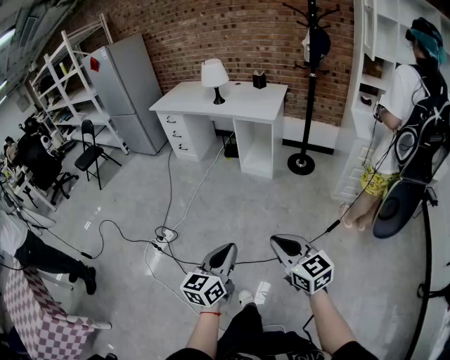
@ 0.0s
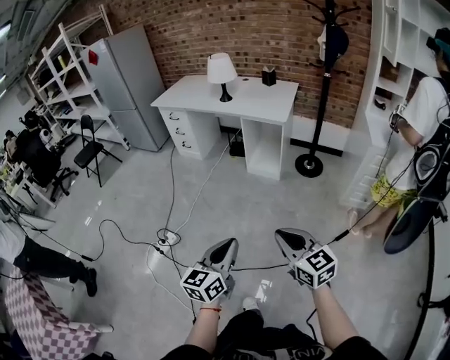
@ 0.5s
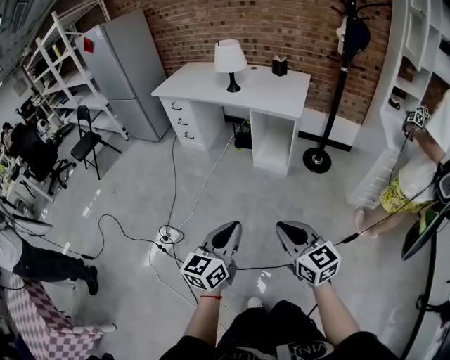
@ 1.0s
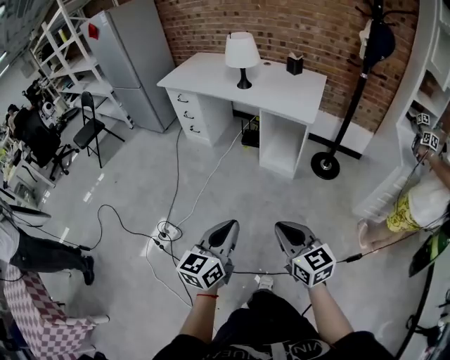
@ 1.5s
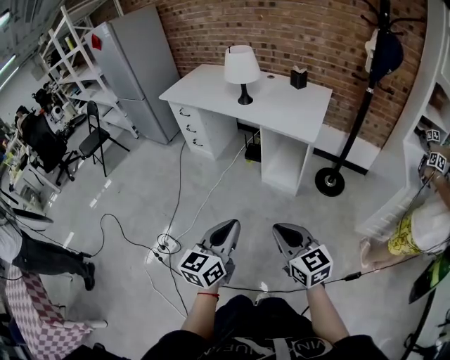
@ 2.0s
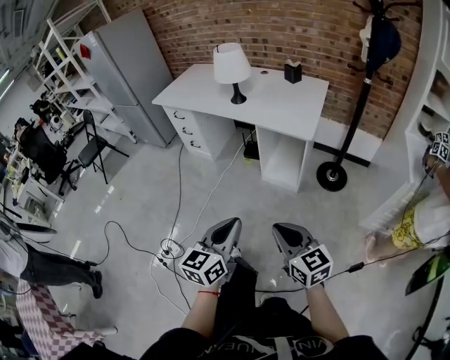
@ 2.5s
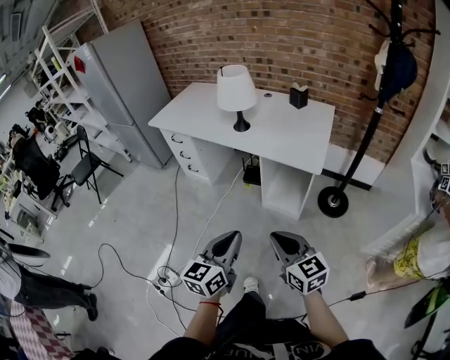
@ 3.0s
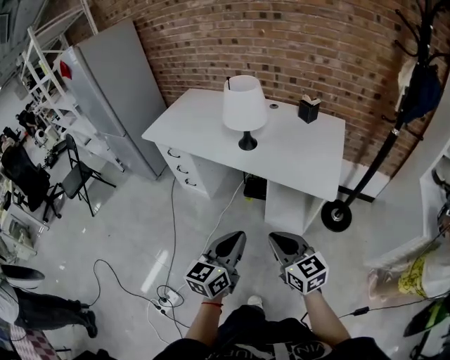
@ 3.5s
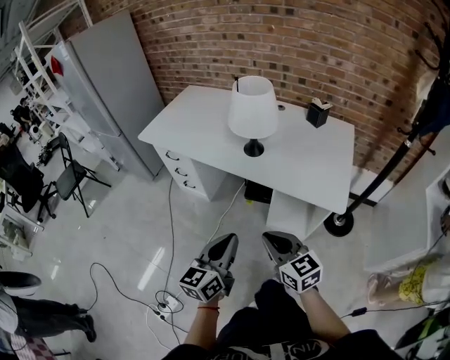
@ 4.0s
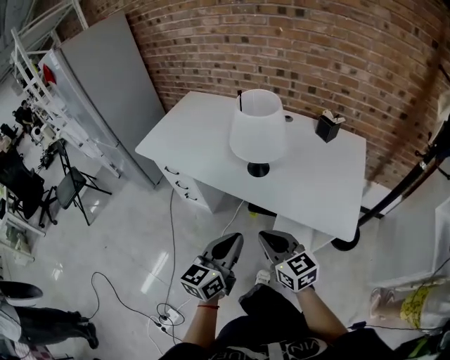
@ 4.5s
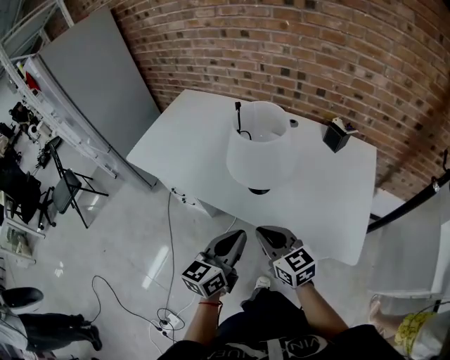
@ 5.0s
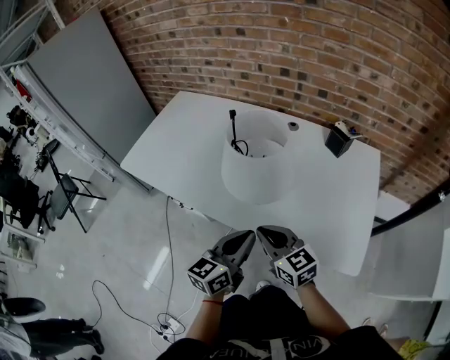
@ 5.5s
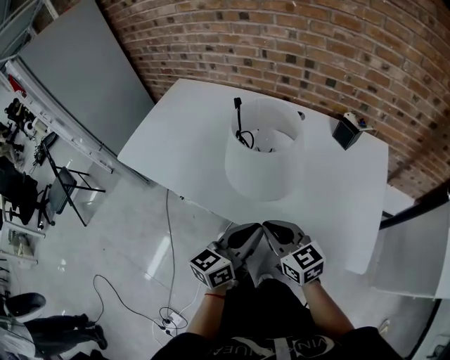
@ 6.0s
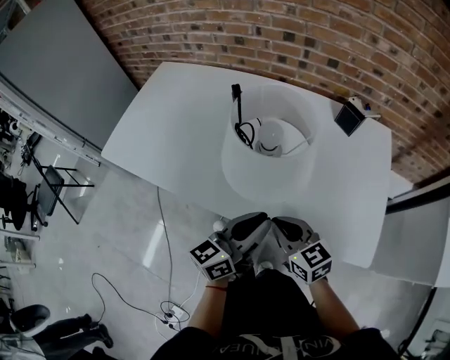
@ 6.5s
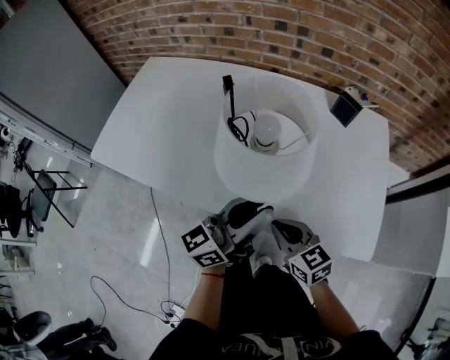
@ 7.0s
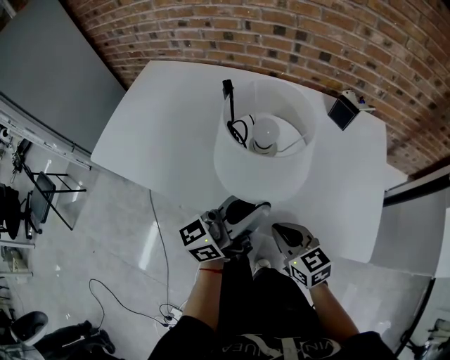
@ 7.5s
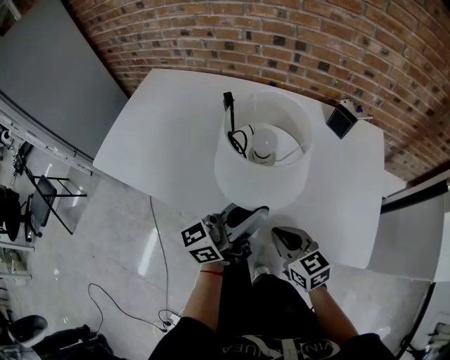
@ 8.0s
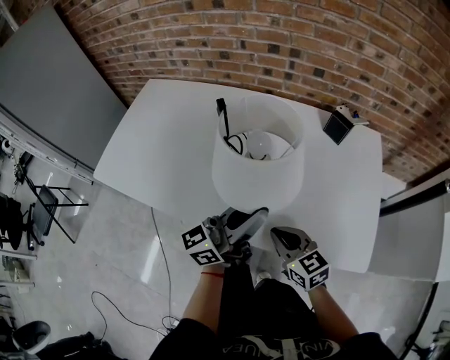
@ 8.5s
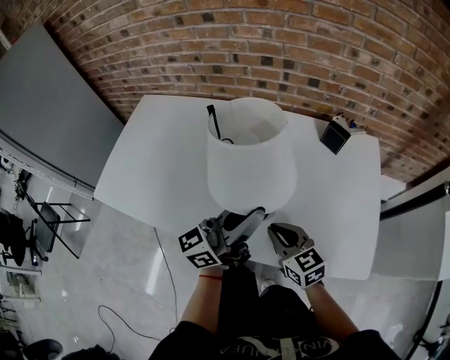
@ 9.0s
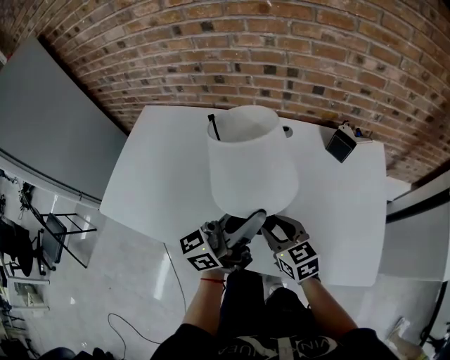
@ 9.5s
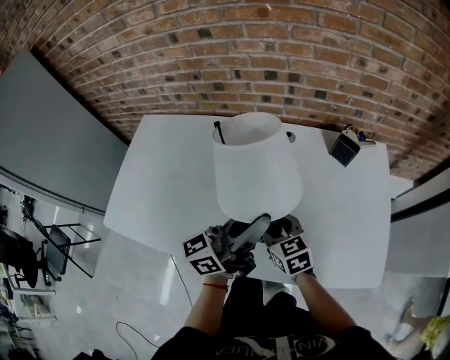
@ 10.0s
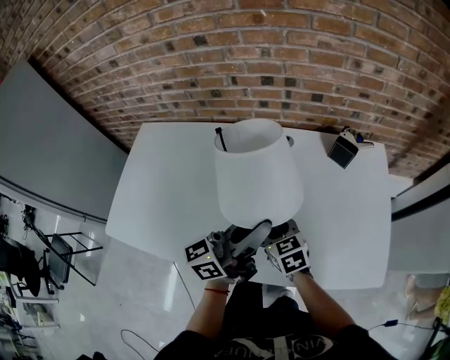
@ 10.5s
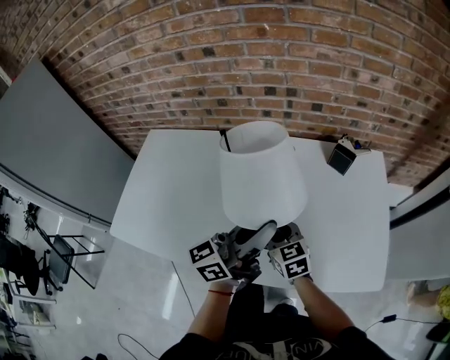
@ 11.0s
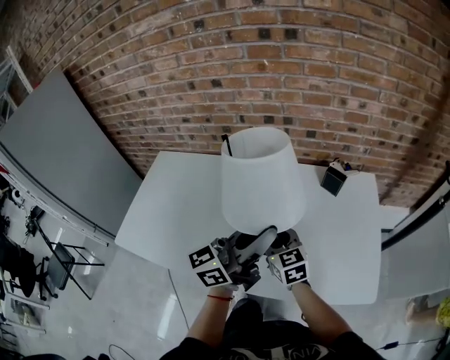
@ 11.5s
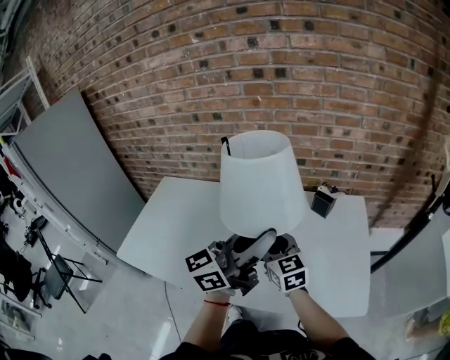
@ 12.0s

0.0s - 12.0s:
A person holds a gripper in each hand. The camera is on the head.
0.0s - 2.0s: Both grippers travel together forward, approximately 40 cm.
2.0s - 4.0s: Both grippers are carried forward, approximately 40 cm.
4.0s - 6.0s: The grippers both shift forward by roughly 30 cm.
6.0s - 8.0s: The right gripper heads downward, covering roughly 5 cm. The left gripper travels forward by approximately 5 cm, and changes its angle by roughly 30 degrees.
8.0s - 10.0s: The left gripper heads forward and upward, covering some 15 cm, while the right gripper moves forward and to the left, approximately 20 cm, and opens its fingers.
10.0s - 12.0s: The right gripper travels upward by some 15 cm, and swivels approximately 20 degrees. Meanwhile the left gripper goes roughly 15 cm upward and to the right.

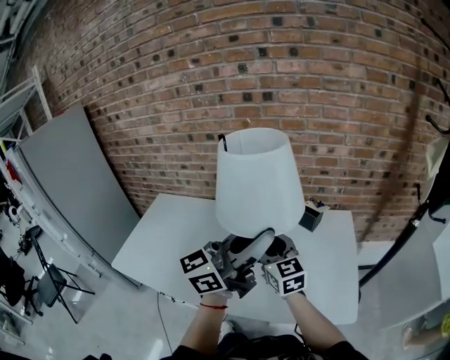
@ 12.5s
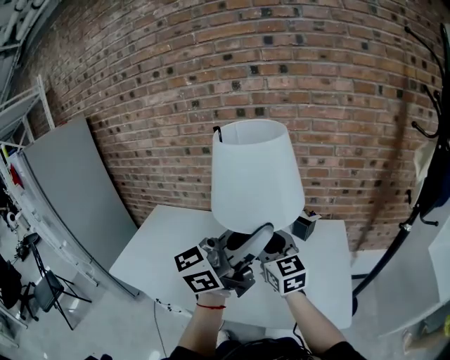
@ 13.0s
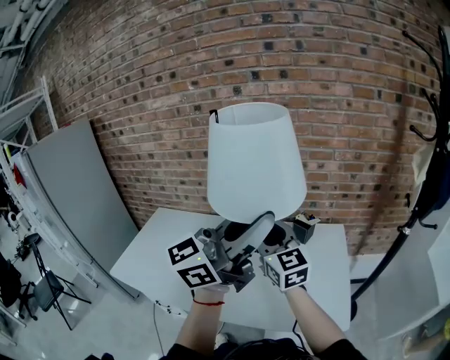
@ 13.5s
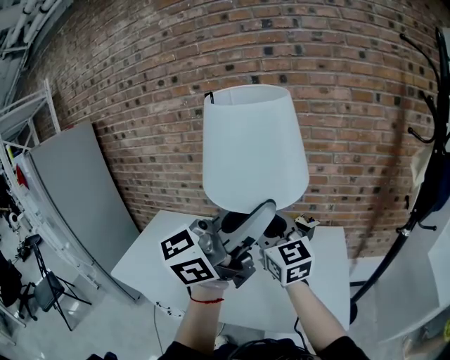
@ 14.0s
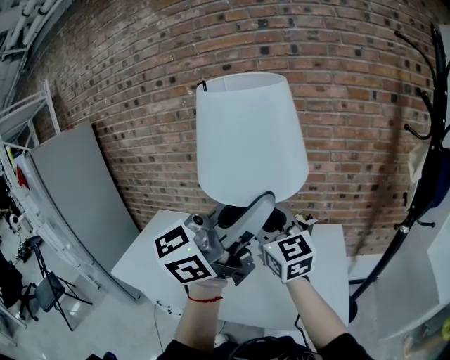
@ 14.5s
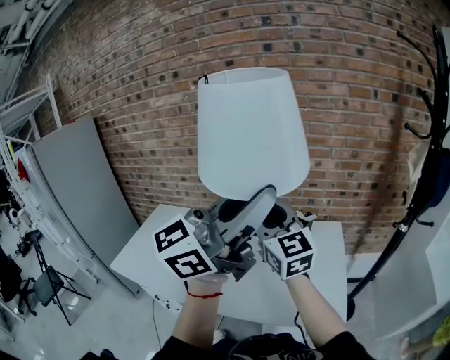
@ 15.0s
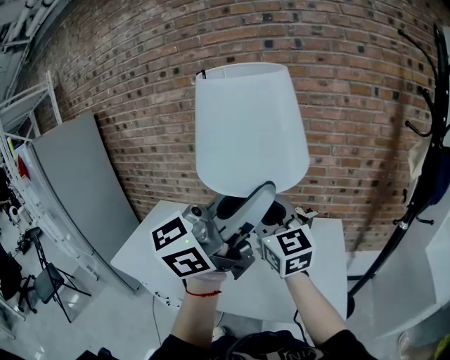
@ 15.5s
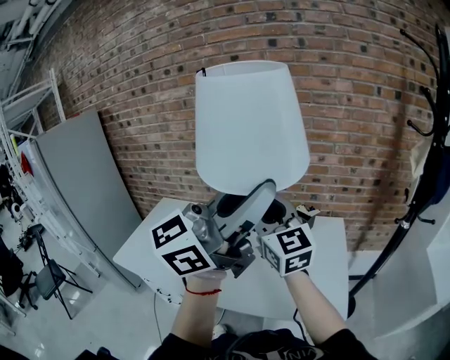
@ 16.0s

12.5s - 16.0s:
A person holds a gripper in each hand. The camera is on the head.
12.5s - 14.5s: The left gripper moves upward and to the right, some 15 cm, while the right gripper heads upward, covering roughly 20 cm.
14.5s - 16.0s: The grippers make only small movements.

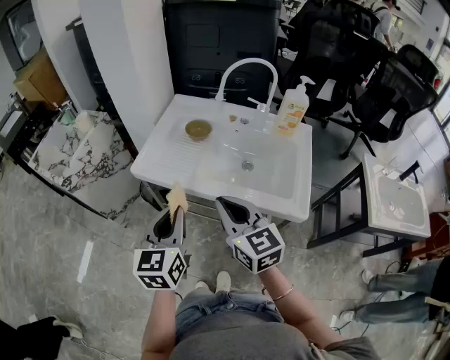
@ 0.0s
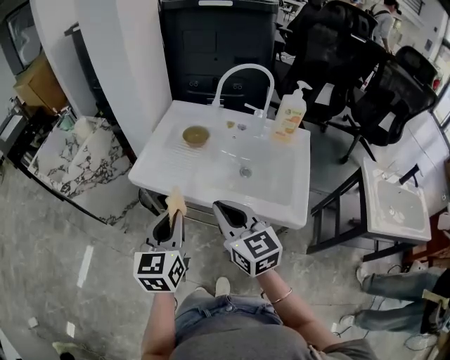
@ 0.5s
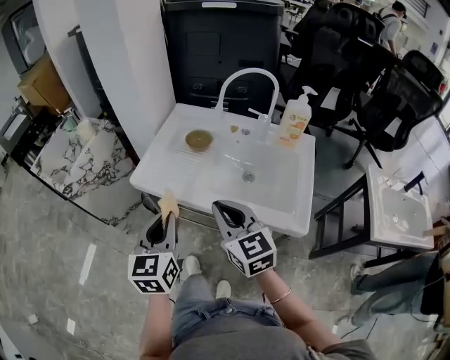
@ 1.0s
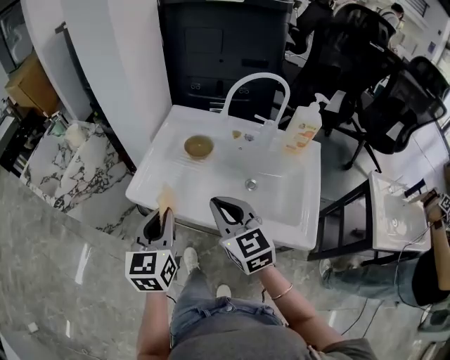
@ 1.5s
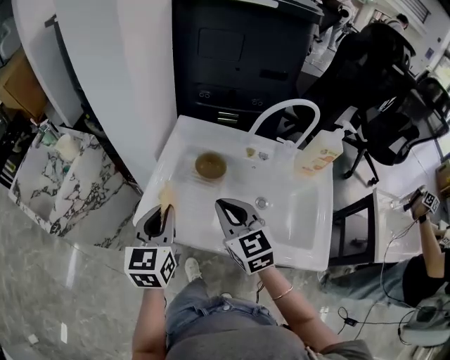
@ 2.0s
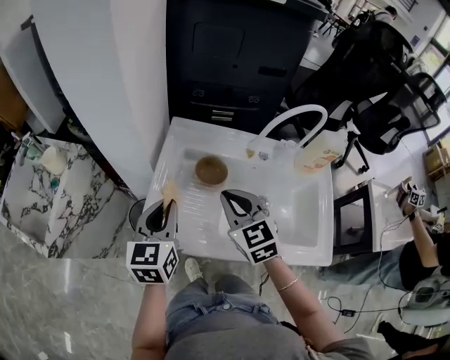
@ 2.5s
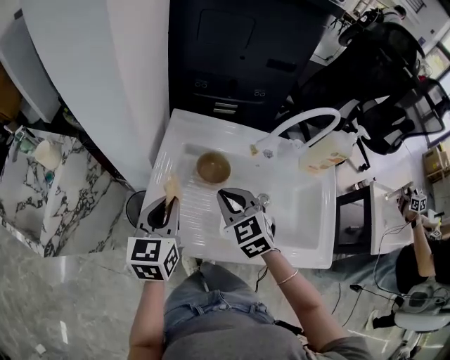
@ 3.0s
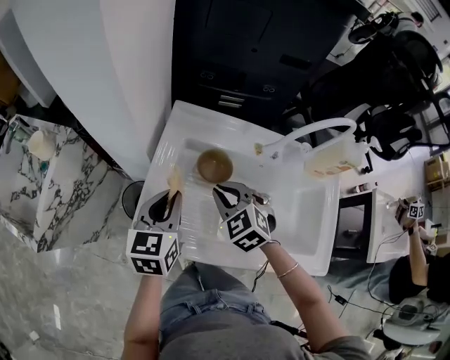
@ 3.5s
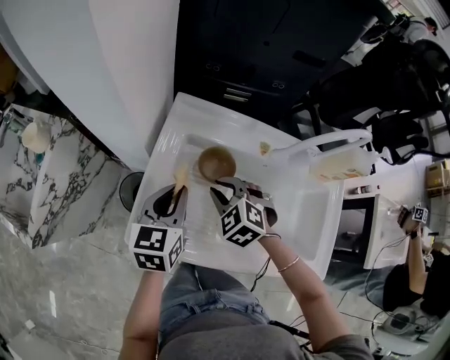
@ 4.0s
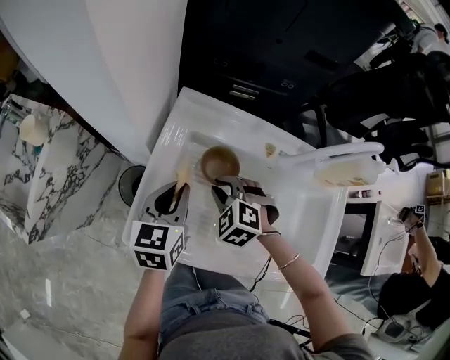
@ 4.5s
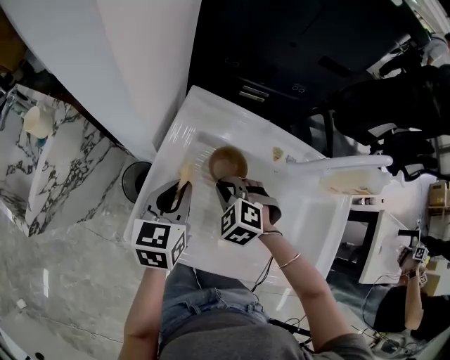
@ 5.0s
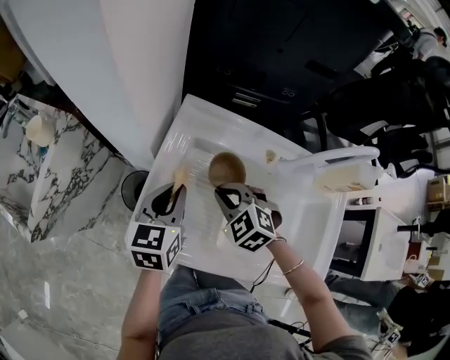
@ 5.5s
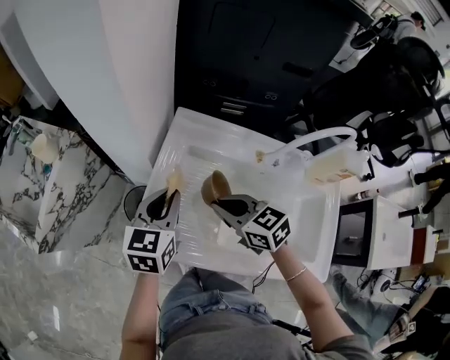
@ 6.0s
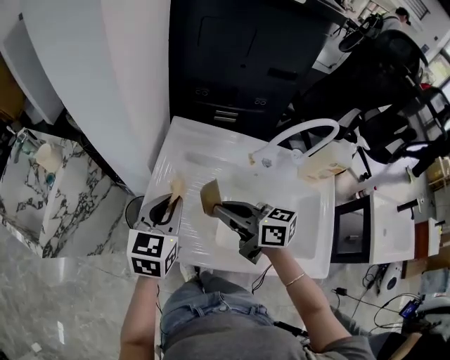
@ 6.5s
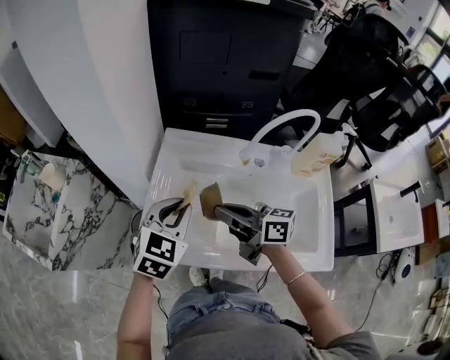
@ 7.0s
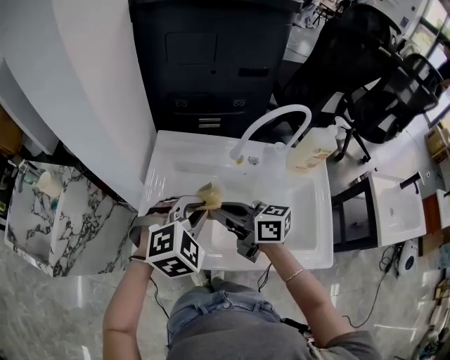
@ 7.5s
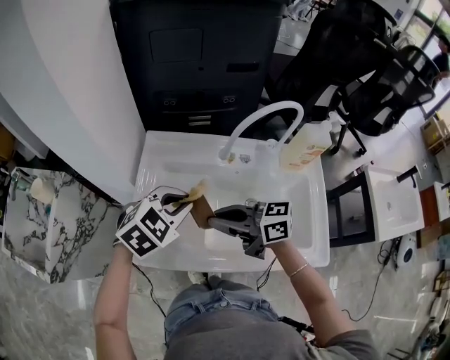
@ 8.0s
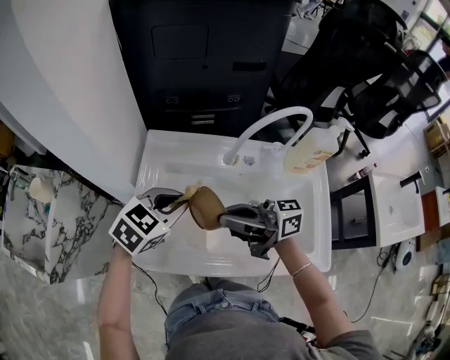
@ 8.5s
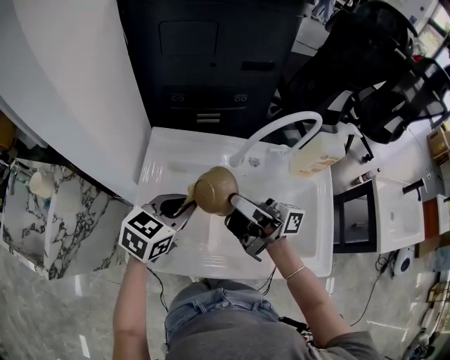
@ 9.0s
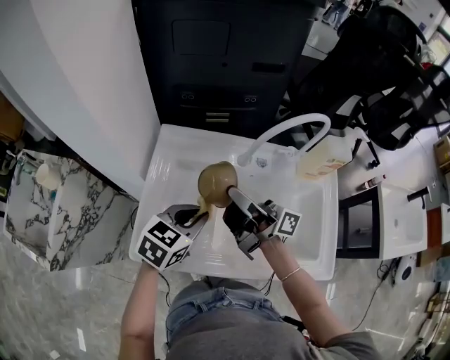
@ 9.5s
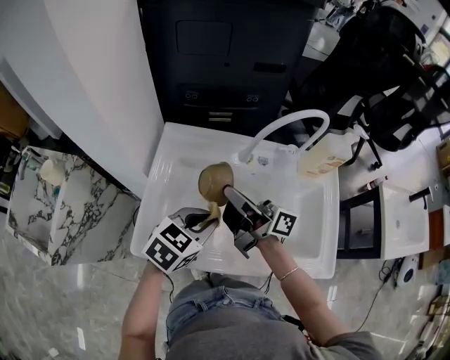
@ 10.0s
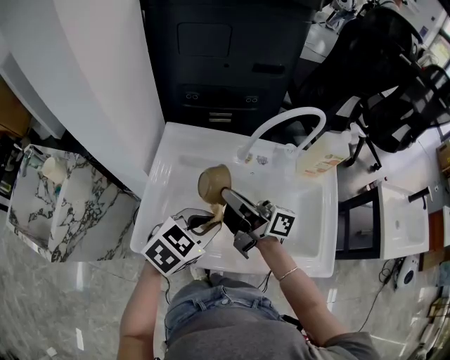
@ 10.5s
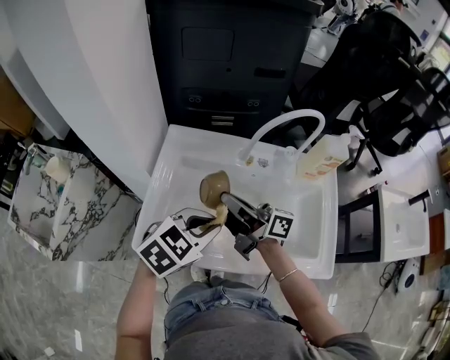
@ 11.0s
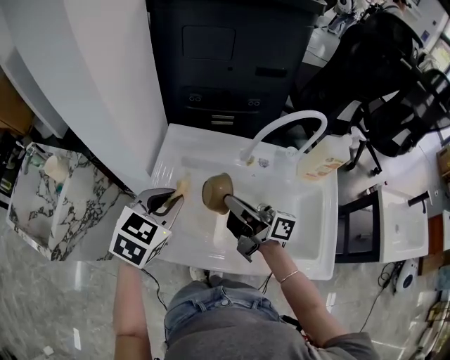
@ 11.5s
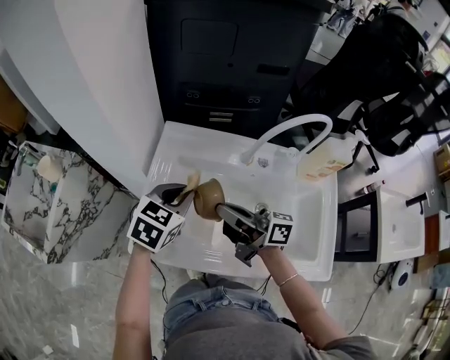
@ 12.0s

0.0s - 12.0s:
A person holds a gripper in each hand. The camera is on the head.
0.0s - 2.0s: Both grippers travel together forward, roughly 25 cm.
2.0s - 4.0s: The right gripper heads downward and forward, covering about 20 cm, and points its fingers some 30 degrees further downward, while the left gripper goes about 15 cm forward and downward.
4.0s - 6.0s: The right gripper heads upward, covering about 5 cm, and swivels some 40 degrees.
6.0s - 8.0s: The right gripper goes some 10 cm upward and backward, and rotates some 30 degrees. The left gripper heads to the right and backward, covering approximately 15 cm, and swivels approximately 60 degrees.
8.0s - 10.0s: The right gripper ends up some 10 cm from where it was, and rotates some 40 degrees. The left gripper shifts by about 5 cm, and rotates roughly 20 degrees.
10.0s - 12.0s: The left gripper is displaced forward and to the left by roughly 10 cm.
